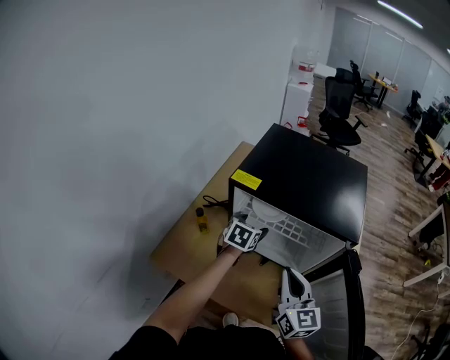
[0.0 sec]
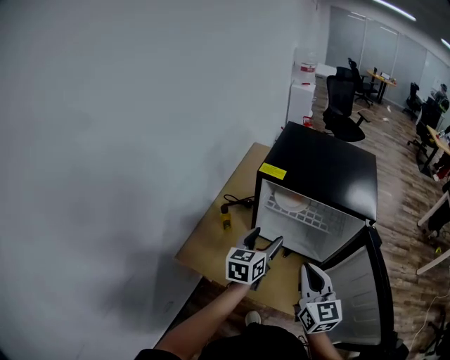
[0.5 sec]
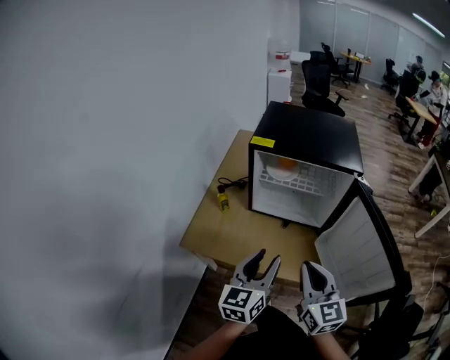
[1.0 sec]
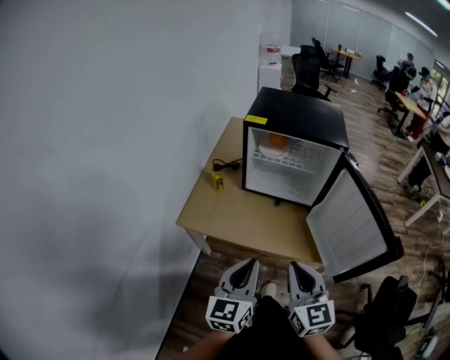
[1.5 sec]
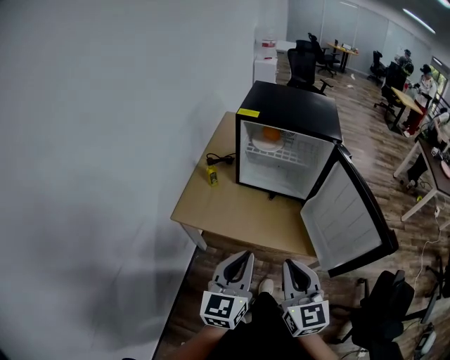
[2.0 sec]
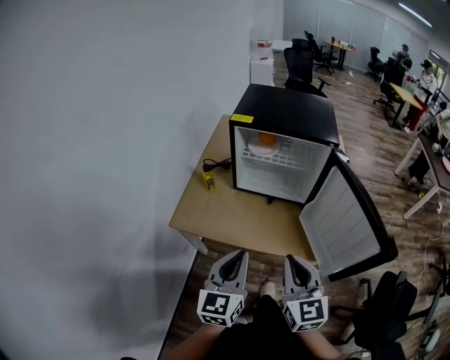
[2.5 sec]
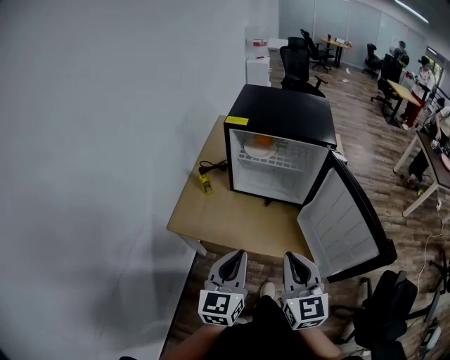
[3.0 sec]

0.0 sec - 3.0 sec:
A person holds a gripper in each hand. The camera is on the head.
0.0 sec - 1.5 sec: The left gripper travels backward by about 50 cm, tips its fingers upward by some 30 degrees, and closes its fingers. Meanwhile the right gripper goes some 30 cm backward.
1.5 sec - 3.0 sec: The right gripper ends up about 5 cm from where it was.

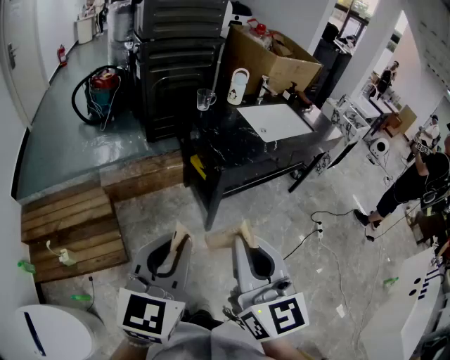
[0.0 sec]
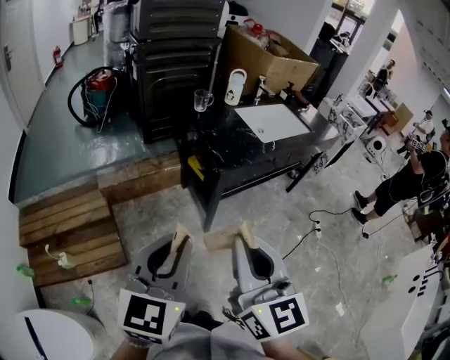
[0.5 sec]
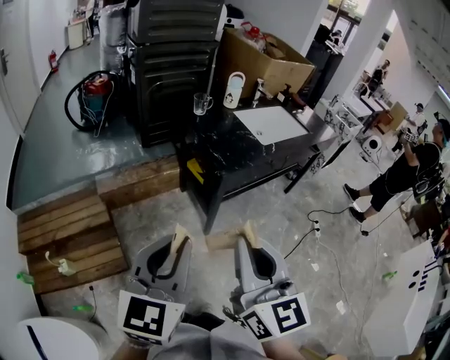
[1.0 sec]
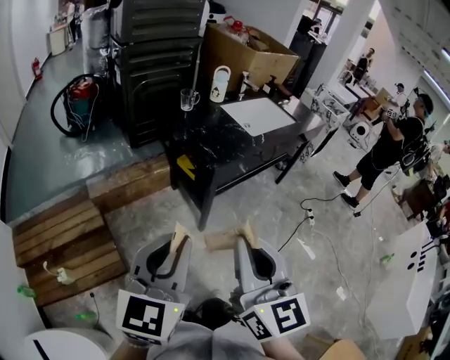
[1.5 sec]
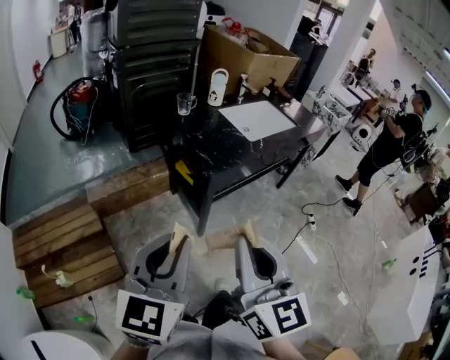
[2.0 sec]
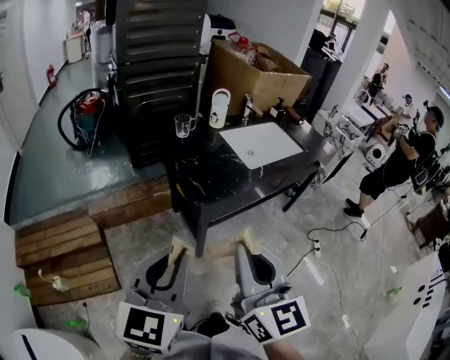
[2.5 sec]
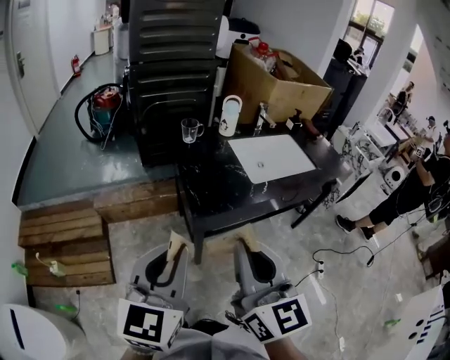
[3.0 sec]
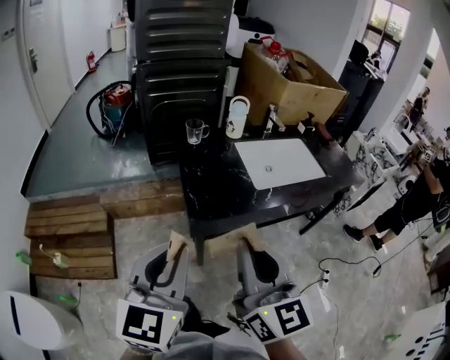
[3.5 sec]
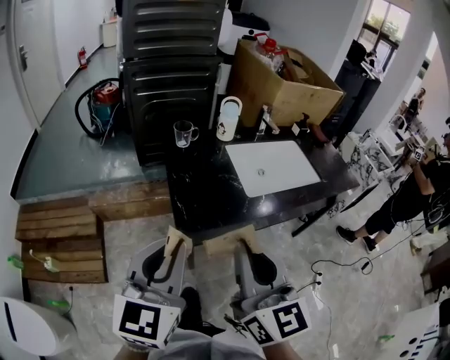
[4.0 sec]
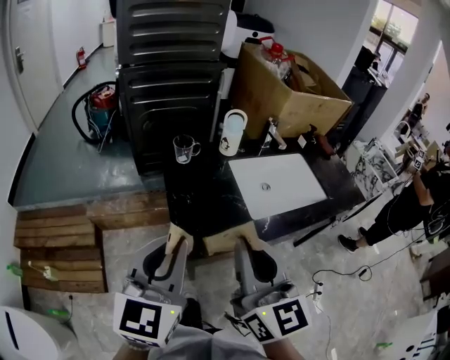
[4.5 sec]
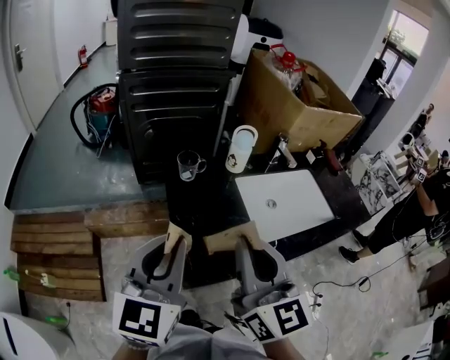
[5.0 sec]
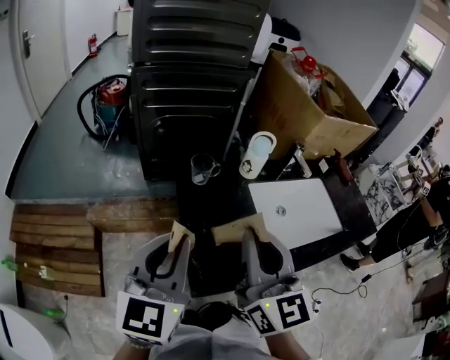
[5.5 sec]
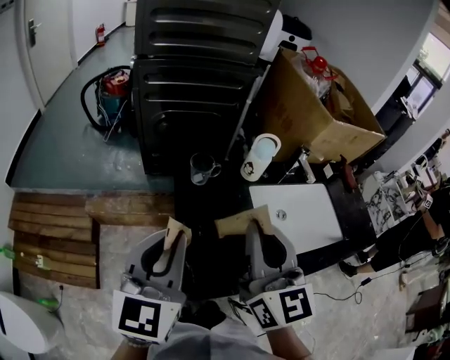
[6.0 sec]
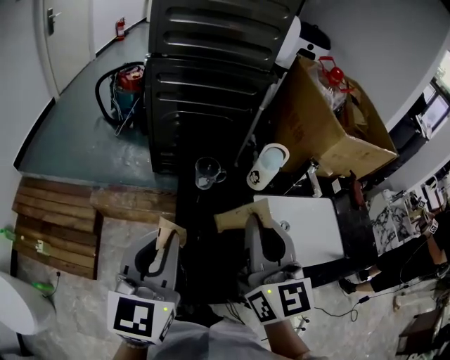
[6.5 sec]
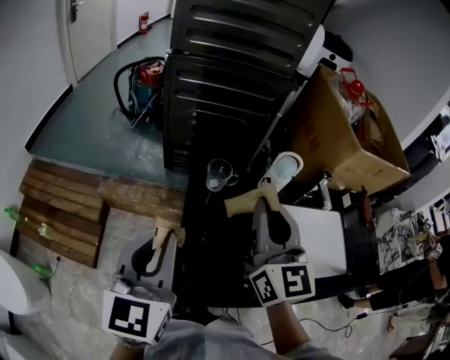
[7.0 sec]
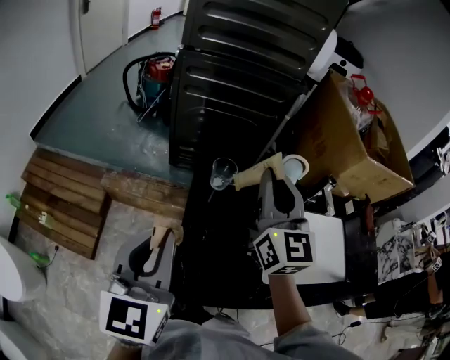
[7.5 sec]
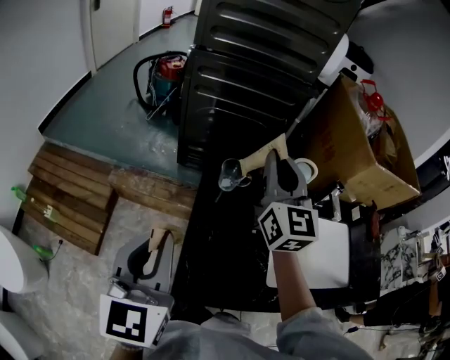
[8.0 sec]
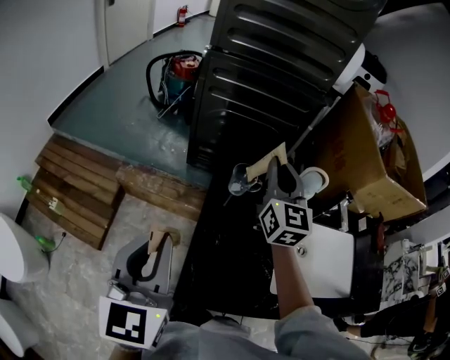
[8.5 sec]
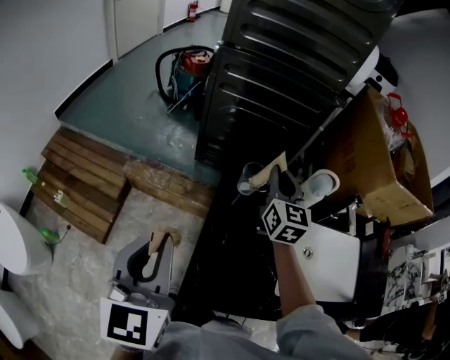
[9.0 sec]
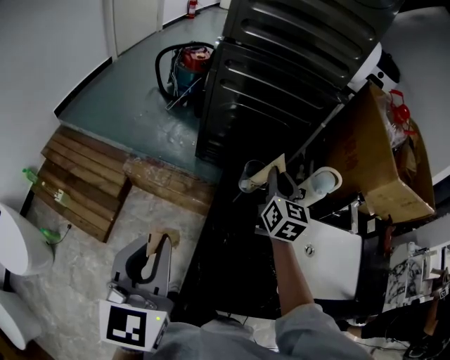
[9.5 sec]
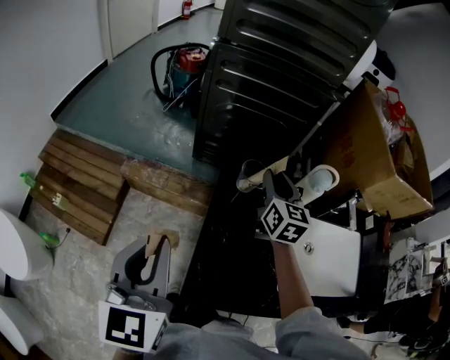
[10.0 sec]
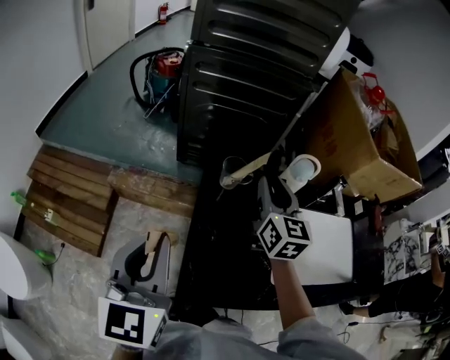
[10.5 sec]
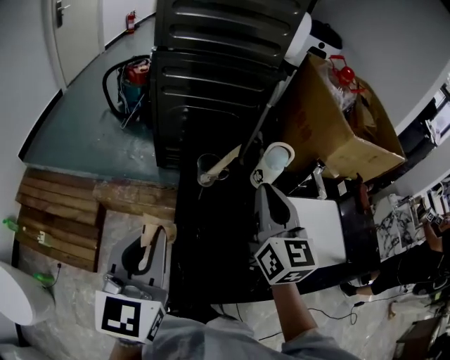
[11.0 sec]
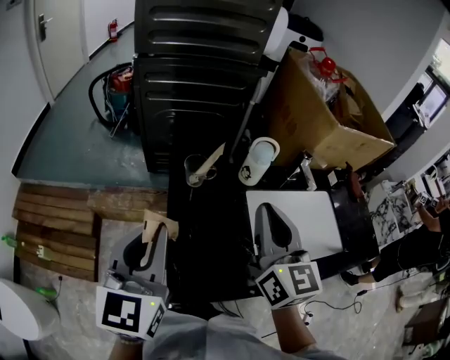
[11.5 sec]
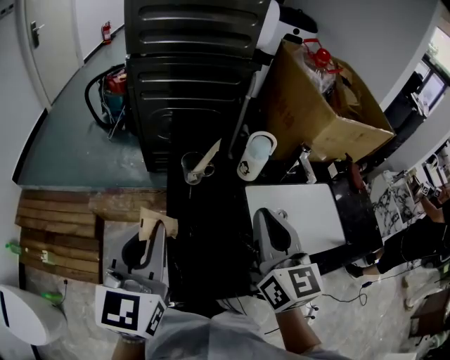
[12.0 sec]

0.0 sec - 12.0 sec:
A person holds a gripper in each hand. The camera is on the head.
0.0 sec - 2.0 sec: The grippers stay close to where they were, moving slightly.
2.0 sec - 4.0 sec: Both grippers move forward and to the right, about 30 cm.
4.0 sec - 6.0 sec: Both grippers move forward, about 30 cm.
6.0 sec - 8.0 sec: The left gripper changes its angle by some 20 degrees. Meanwhile the right gripper travels forward by approximately 20 cm.
8.0 sec - 10.0 sec: The right gripper shifts about 15 cm downward, turns by approximately 20 degrees, and opens up.
10.0 sec - 12.0 sec: The right gripper moves backward, upward and to the right, roughly 25 cm, and closes; the left gripper shifts some 10 cm to the right.

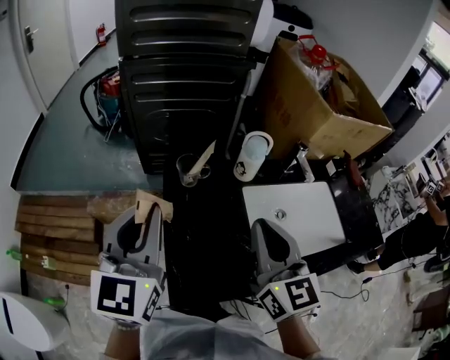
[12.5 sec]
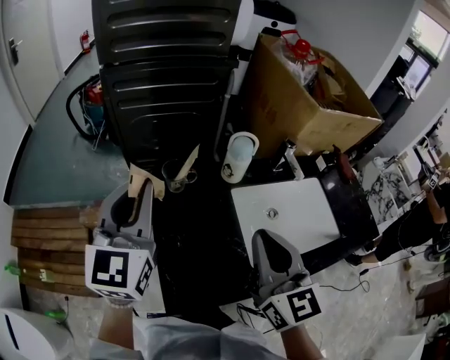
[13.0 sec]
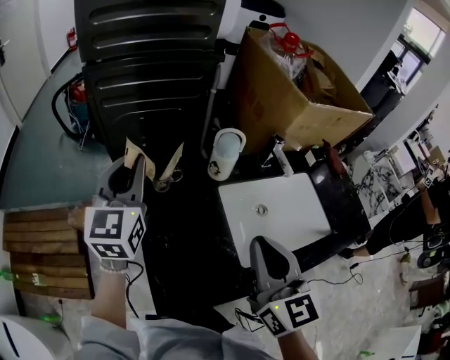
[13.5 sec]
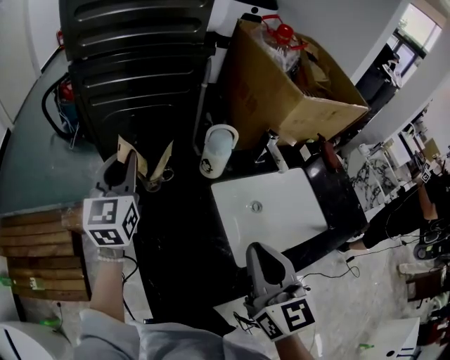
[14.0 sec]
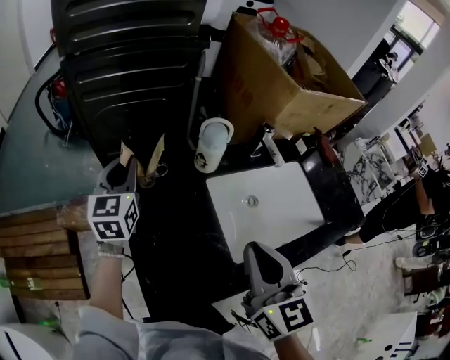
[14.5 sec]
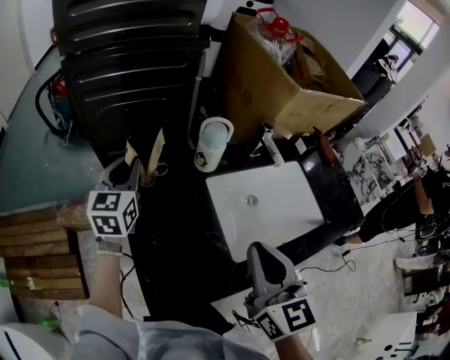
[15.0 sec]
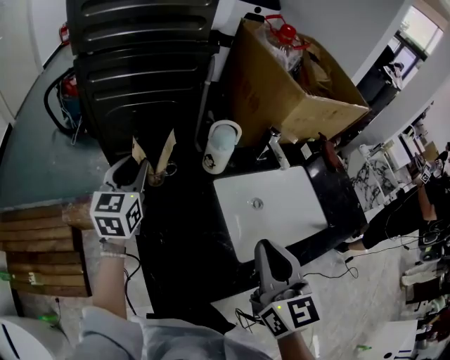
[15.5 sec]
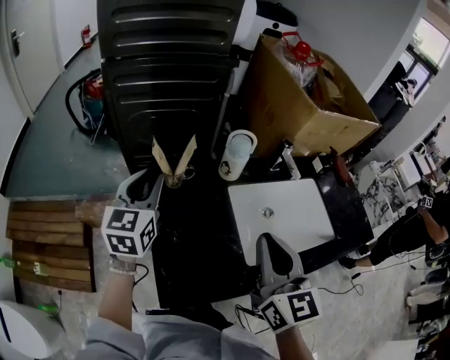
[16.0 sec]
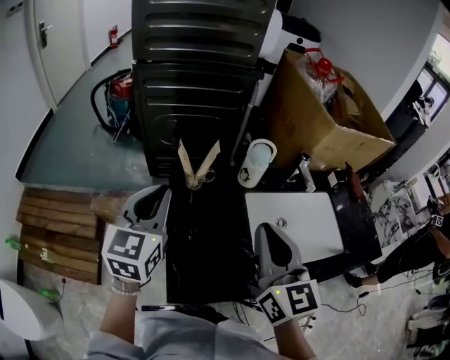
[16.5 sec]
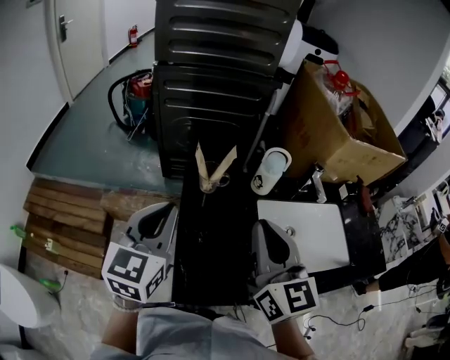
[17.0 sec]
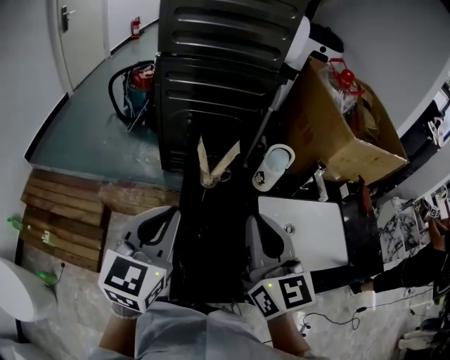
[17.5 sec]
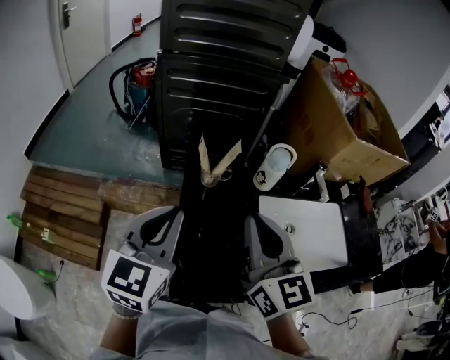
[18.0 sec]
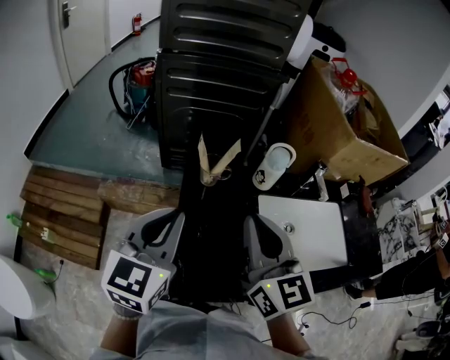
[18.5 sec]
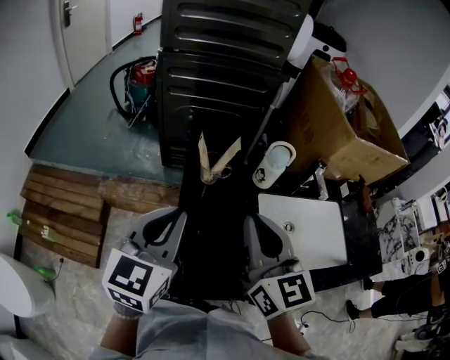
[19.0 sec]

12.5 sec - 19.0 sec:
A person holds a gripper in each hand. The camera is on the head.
12.5 sec - 14.5 sec: The left gripper moves forward and downward, about 25 cm, while the right gripper travels to the right by approximately 5 cm.
14.5 sec - 17.0 sec: The right gripper heads to the left and upward, covering about 10 cm; the left gripper heads backward and upward, covering approximately 20 cm.
17.0 sec - 19.0 sec: There are only small adjustments of the grippers.

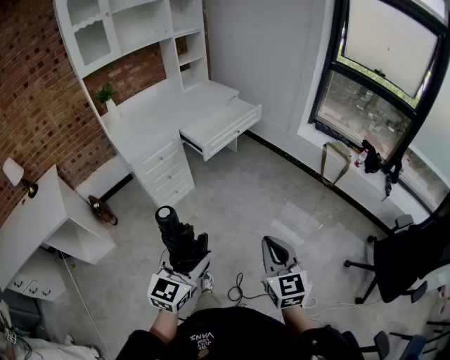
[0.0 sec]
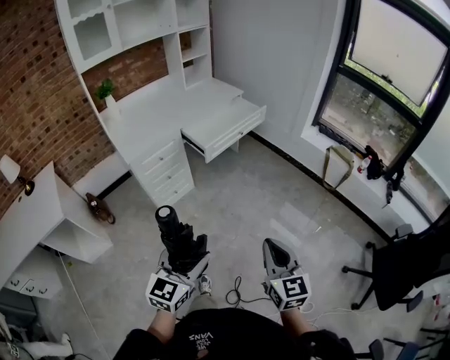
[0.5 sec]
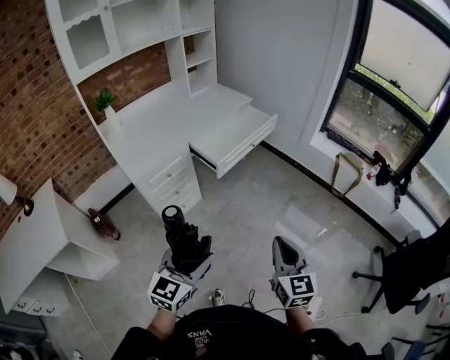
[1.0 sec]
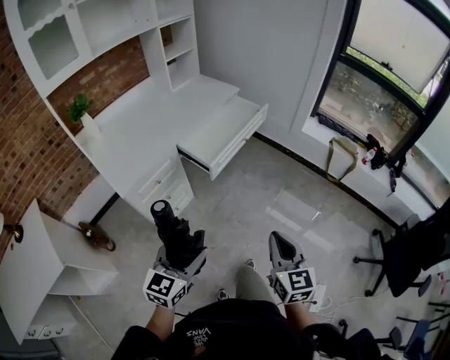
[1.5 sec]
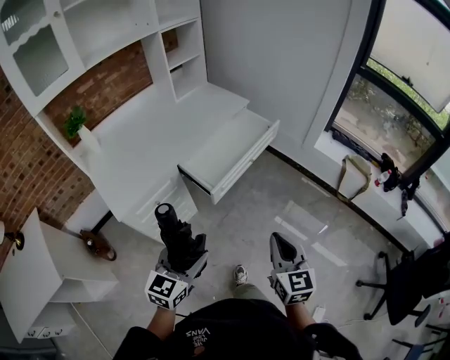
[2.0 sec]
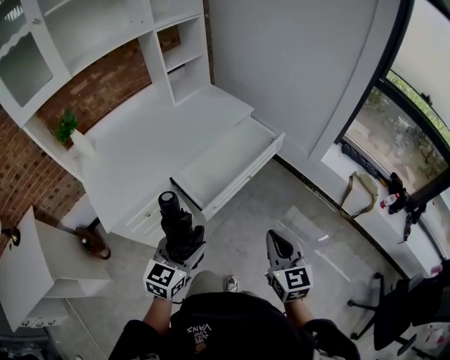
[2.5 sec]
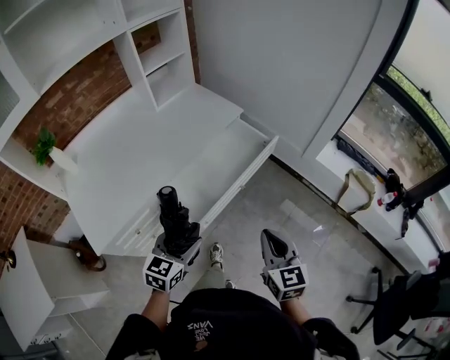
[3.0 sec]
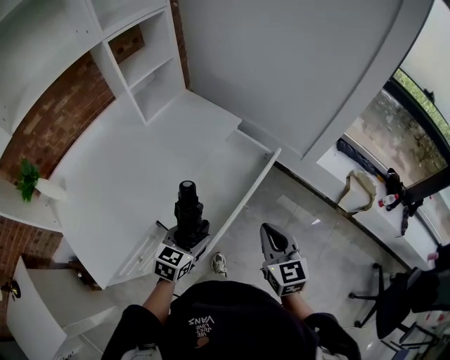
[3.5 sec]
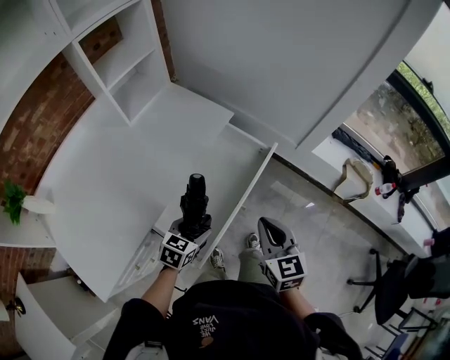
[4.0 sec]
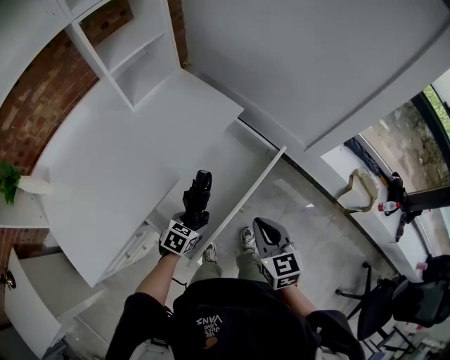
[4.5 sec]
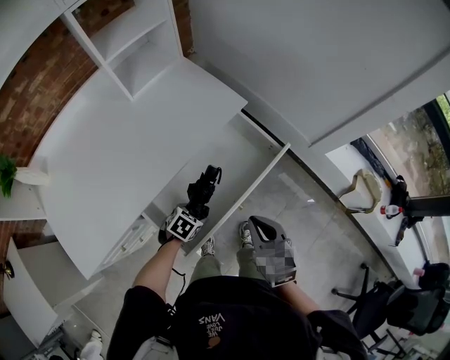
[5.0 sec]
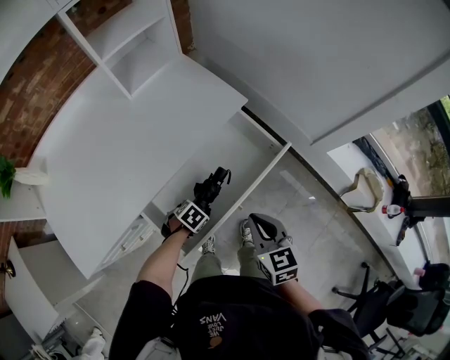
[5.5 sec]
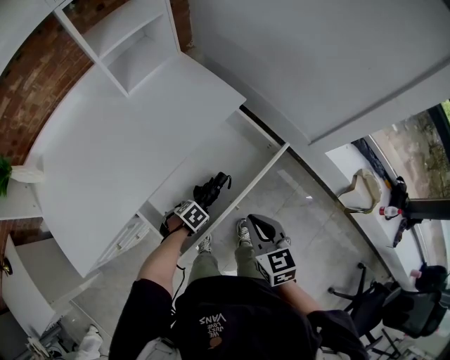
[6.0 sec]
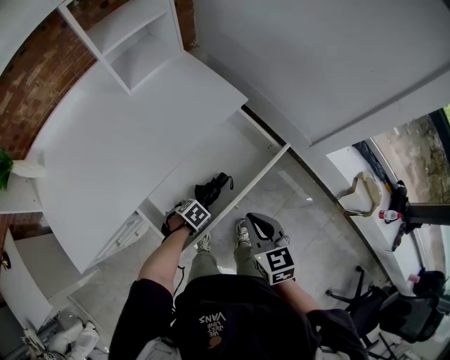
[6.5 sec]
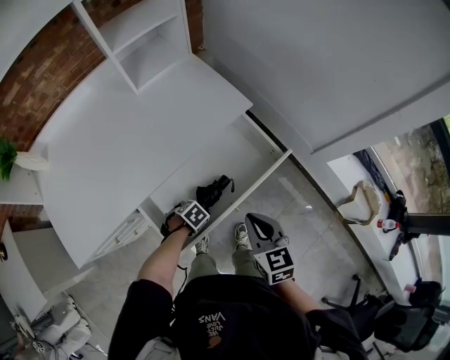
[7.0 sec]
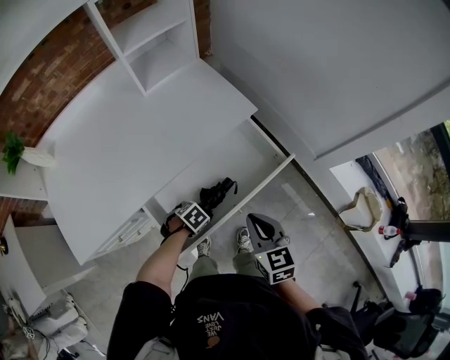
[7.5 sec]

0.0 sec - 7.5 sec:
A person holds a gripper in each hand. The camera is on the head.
0.0 sec - 2.0 sec: The two grippers travel together, forward, approximately 40 cm.
2.0 sec - 4.0 sec: The pair of grippers is taken forward, approximately 50 cm. The left gripper travels downward by approximately 20 cm, and turns by about 30 degrees.
4.0 sec - 5.5 sec: The right gripper moves downward and forward, approximately 10 cm, while the left gripper shifts roughly 15 cm downward, and angles its fingers downward, by about 30 degrees.
5.5 sec - 7.5 sec: The grippers move only a little.
